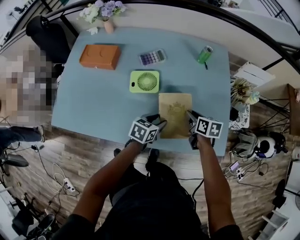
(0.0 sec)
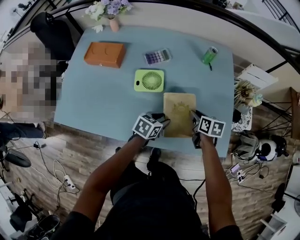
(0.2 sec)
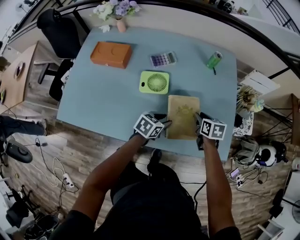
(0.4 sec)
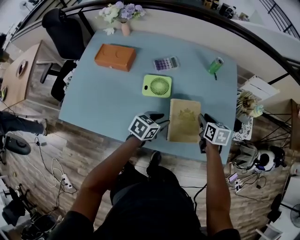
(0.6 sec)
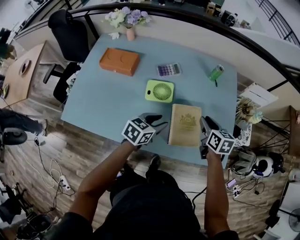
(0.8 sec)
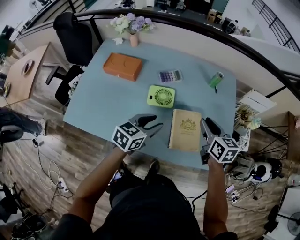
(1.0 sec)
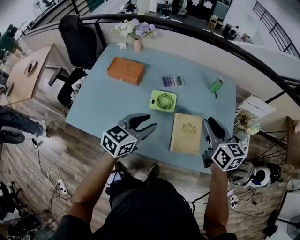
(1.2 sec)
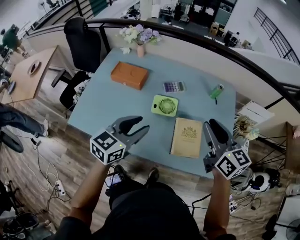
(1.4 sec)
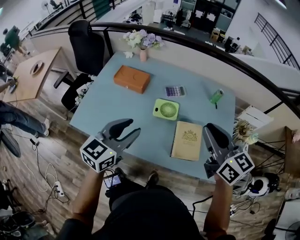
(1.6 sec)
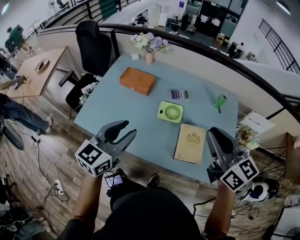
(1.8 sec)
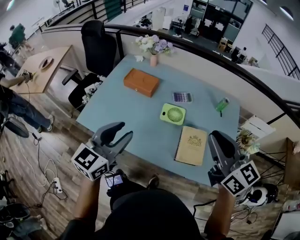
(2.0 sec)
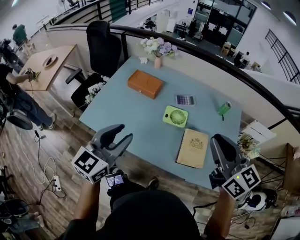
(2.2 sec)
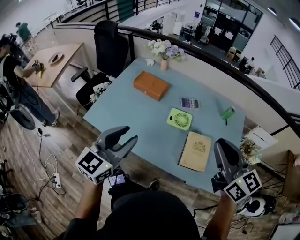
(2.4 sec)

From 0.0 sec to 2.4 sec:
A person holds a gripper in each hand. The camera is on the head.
From 0.0 sec to 1.2 sec: The left gripper moves upward and to the left, approximately 25 cm, and swivels approximately 30 degrees; the right gripper heads upward, covering roughly 25 cm, and changes its angle by roughly 40 degrees.
From 1.2 sec to 2.4 sec: The right gripper heads upward, to the left and backward, covering approximately 20 cm, and turns by roughly 20 degrees. Meanwhile the left gripper shifts some 25 cm to the left, upward and backward, and turns by roughly 30 degrees.

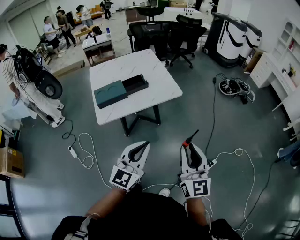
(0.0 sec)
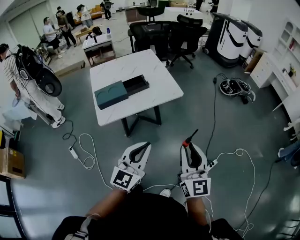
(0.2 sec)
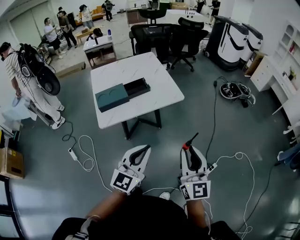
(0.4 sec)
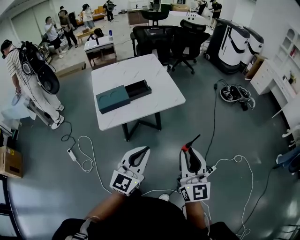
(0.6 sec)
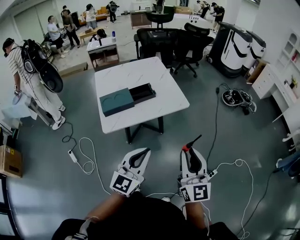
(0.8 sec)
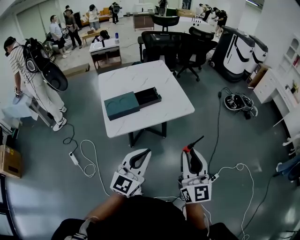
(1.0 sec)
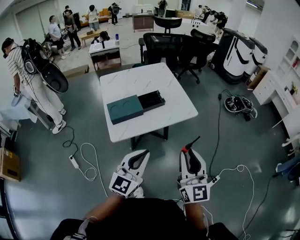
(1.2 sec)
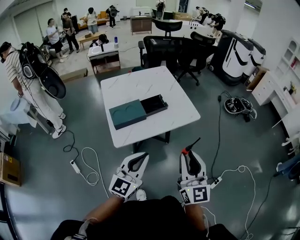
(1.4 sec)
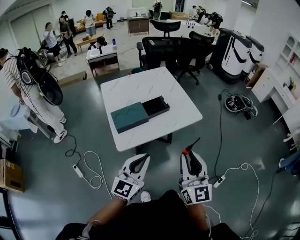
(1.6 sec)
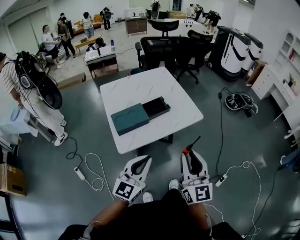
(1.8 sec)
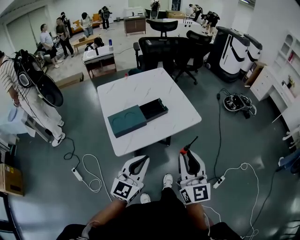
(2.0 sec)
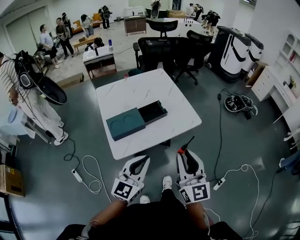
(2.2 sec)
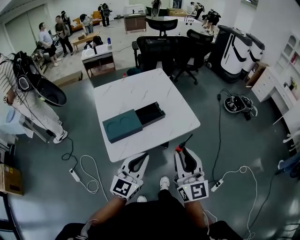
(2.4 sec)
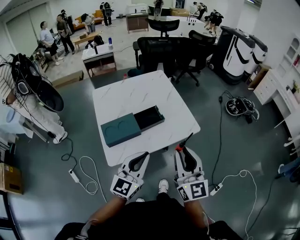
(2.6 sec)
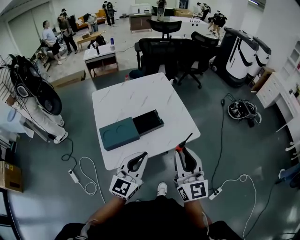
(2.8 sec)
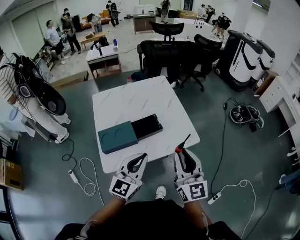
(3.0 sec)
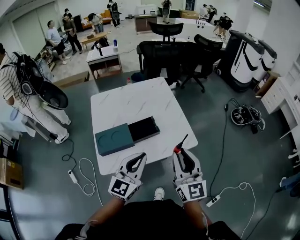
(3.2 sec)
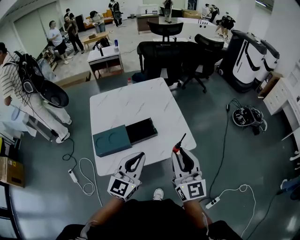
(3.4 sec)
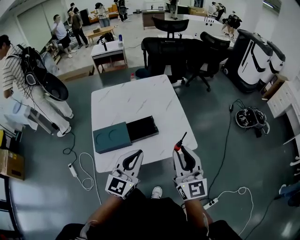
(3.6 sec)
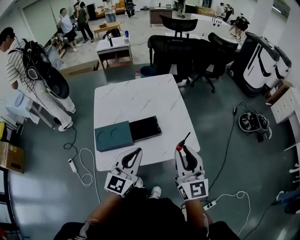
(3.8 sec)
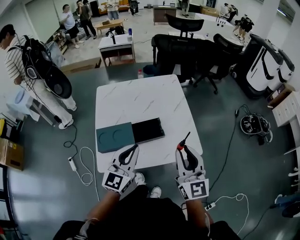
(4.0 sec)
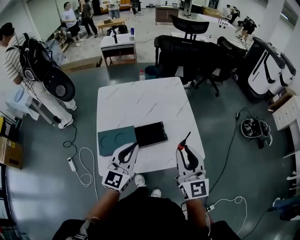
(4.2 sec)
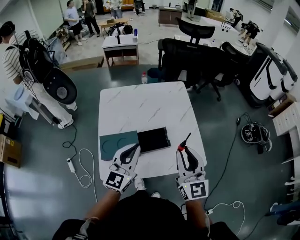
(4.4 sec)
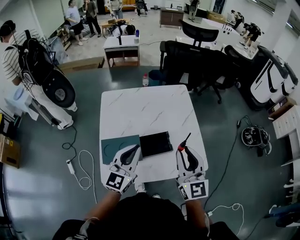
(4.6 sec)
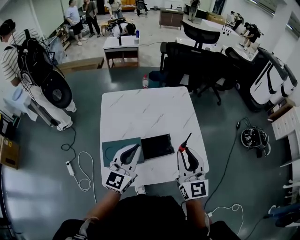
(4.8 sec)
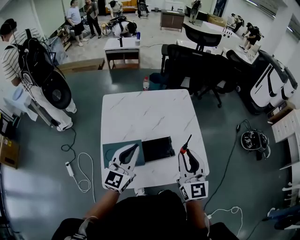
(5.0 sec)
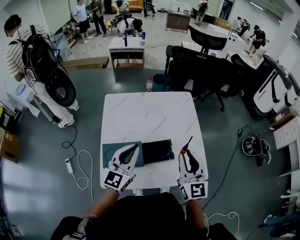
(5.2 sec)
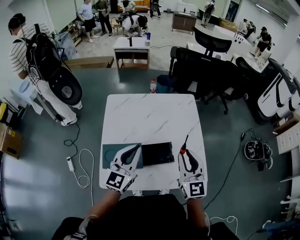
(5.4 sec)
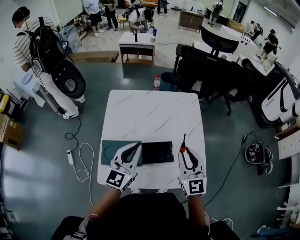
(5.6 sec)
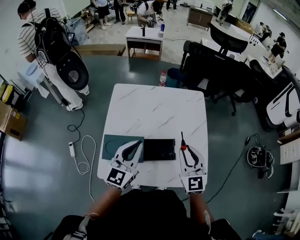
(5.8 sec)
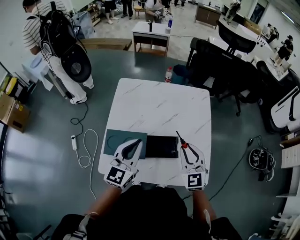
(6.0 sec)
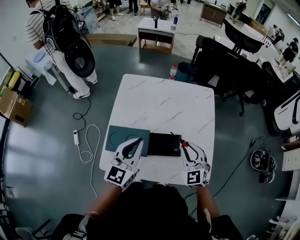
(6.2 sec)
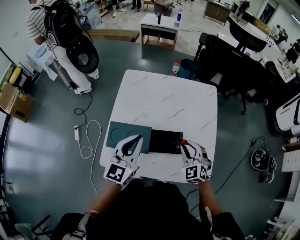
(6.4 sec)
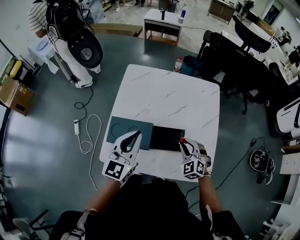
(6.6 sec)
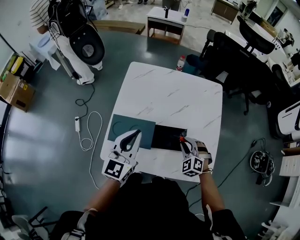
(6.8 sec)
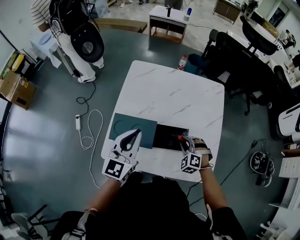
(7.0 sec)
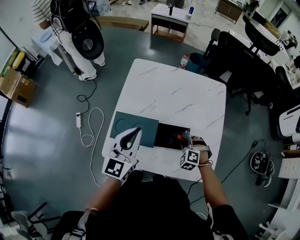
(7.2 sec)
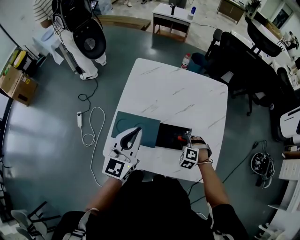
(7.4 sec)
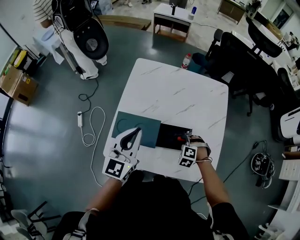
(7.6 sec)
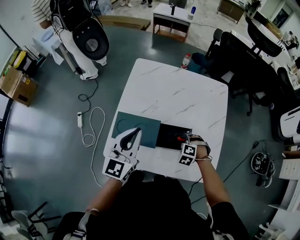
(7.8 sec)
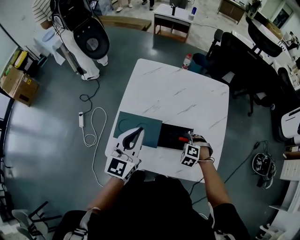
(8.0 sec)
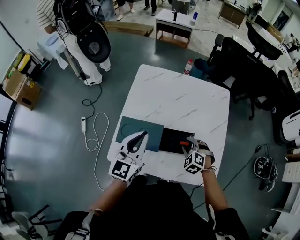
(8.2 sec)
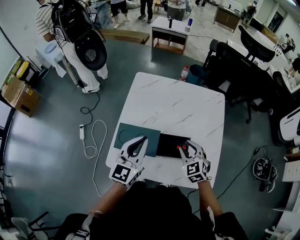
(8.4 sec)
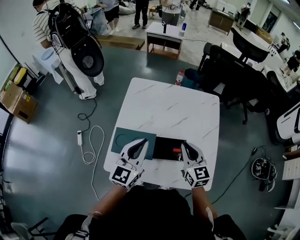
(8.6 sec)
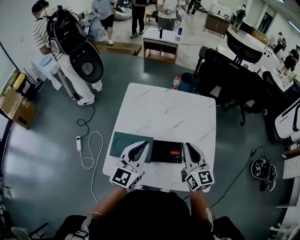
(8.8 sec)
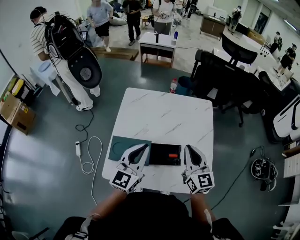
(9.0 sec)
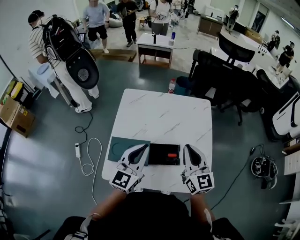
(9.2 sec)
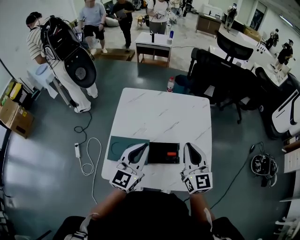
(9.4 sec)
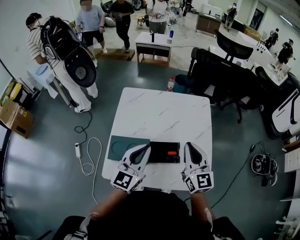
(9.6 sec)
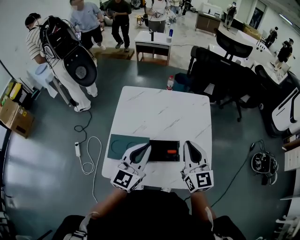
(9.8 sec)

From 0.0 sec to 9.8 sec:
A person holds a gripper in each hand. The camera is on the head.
From 0.0 sec to 1.4 sec: The right gripper travels to the left and forward by about 20 cm. The left gripper travels to the left by approximately 20 cm.
From 1.4 sec to 2.8 sec: The grippers both shift forward by approximately 20 cm.
From 2.8 sec to 4.2 sec: The two grippers go approximately 15 cm forward.
From 4.2 sec to 5.6 sec: The right gripper moves forward and downward, roughly 15 cm. The left gripper travels forward by about 10 cm.
From 5.6 sec to 7.0 sec: The left gripper travels to the left by some 5 cm. Meanwhile the right gripper travels downward by about 25 cm, and angles its fingers downward, by roughly 50 degrees.
From 7.0 sec to 8.4 sec: The right gripper travels upward by some 10 cm, and rotates about 40 degrees.
From 8.4 sec to 9.8 sec: The right gripper travels upward by approximately 15 cm, tips its fingers upward by roughly 40 degrees, and closes its fingers. Meanwhile the left gripper goes about 5 cm to the right.

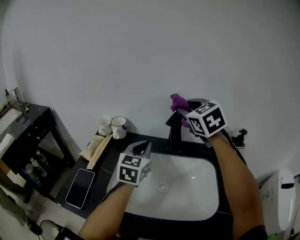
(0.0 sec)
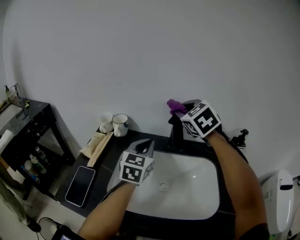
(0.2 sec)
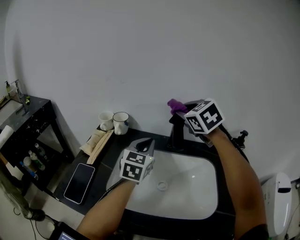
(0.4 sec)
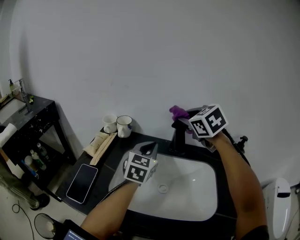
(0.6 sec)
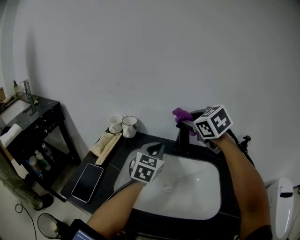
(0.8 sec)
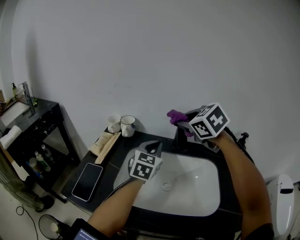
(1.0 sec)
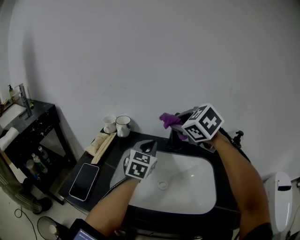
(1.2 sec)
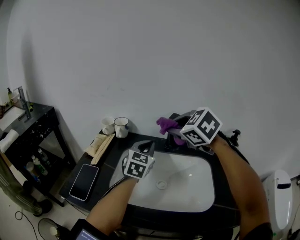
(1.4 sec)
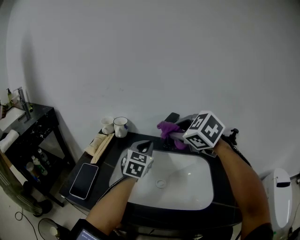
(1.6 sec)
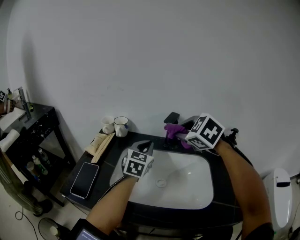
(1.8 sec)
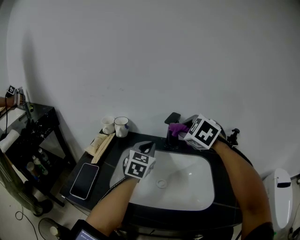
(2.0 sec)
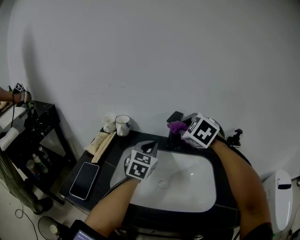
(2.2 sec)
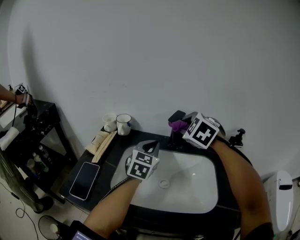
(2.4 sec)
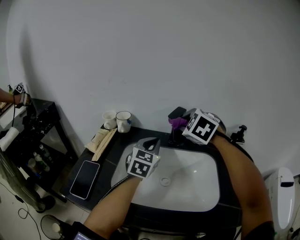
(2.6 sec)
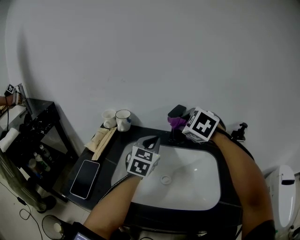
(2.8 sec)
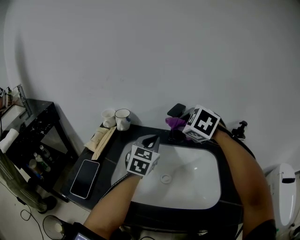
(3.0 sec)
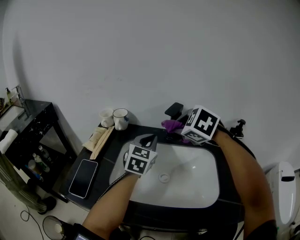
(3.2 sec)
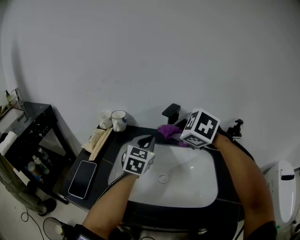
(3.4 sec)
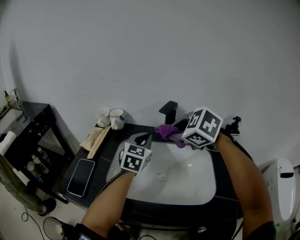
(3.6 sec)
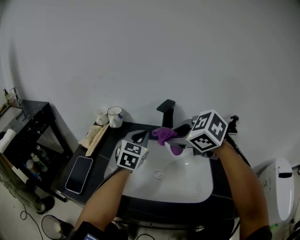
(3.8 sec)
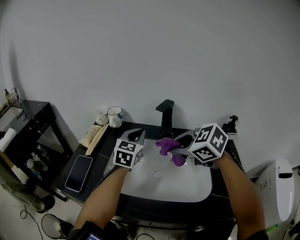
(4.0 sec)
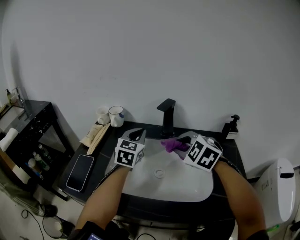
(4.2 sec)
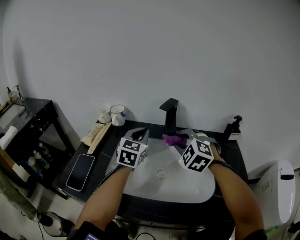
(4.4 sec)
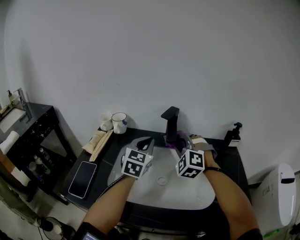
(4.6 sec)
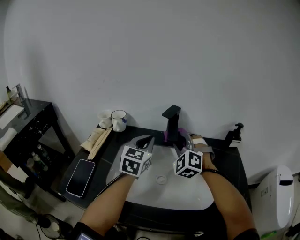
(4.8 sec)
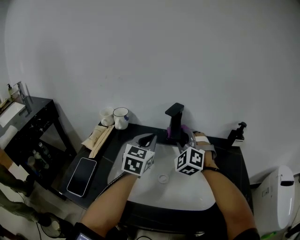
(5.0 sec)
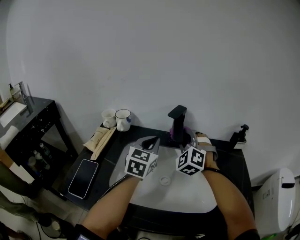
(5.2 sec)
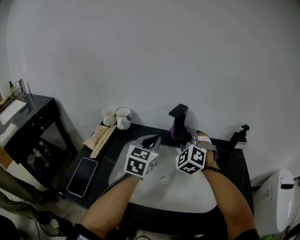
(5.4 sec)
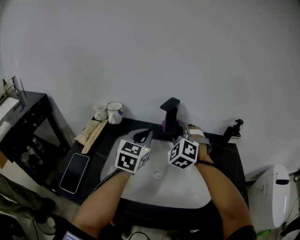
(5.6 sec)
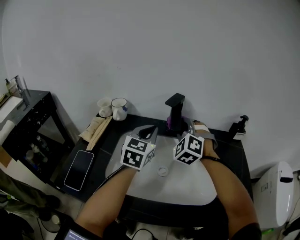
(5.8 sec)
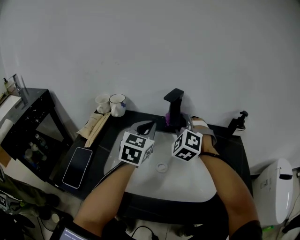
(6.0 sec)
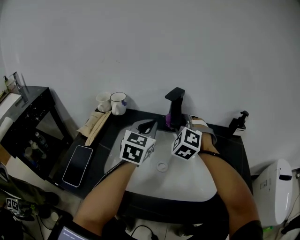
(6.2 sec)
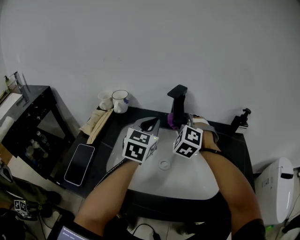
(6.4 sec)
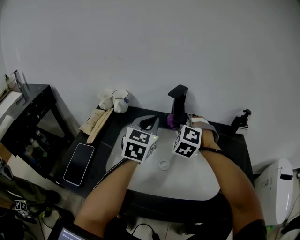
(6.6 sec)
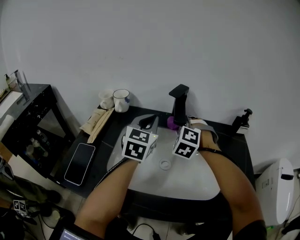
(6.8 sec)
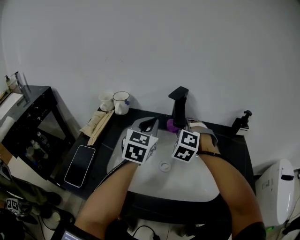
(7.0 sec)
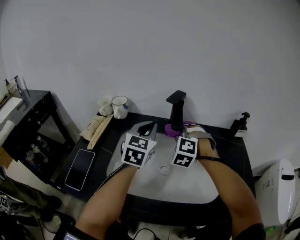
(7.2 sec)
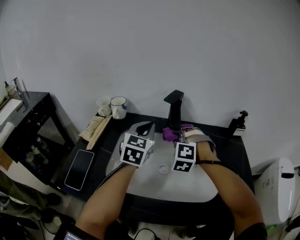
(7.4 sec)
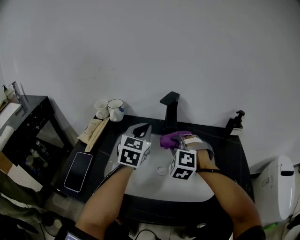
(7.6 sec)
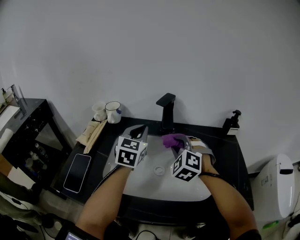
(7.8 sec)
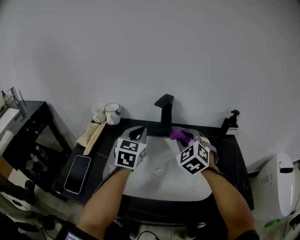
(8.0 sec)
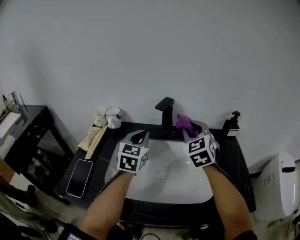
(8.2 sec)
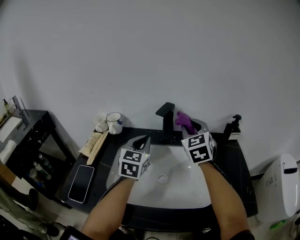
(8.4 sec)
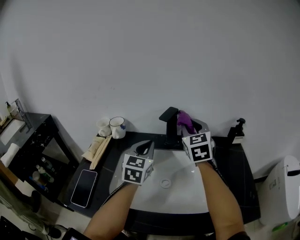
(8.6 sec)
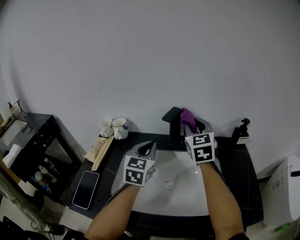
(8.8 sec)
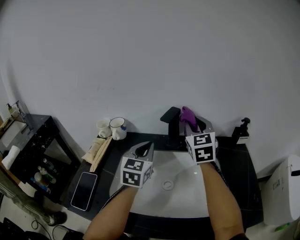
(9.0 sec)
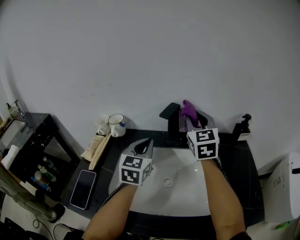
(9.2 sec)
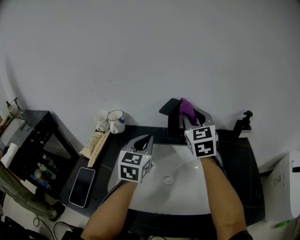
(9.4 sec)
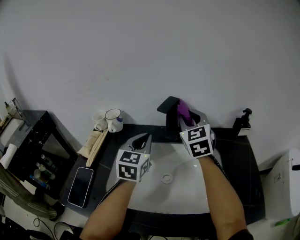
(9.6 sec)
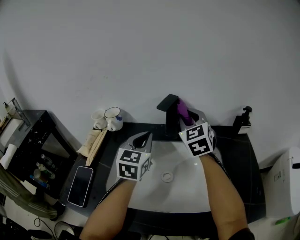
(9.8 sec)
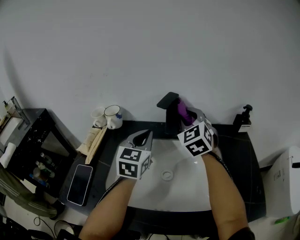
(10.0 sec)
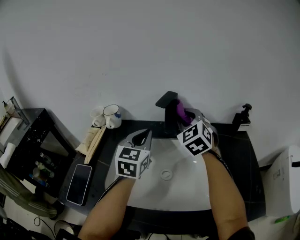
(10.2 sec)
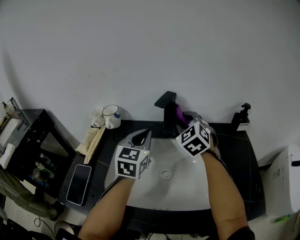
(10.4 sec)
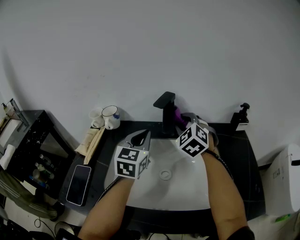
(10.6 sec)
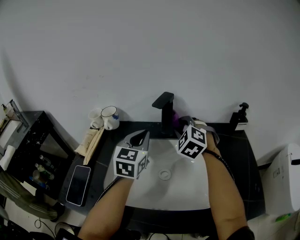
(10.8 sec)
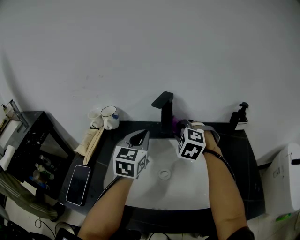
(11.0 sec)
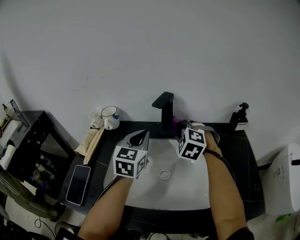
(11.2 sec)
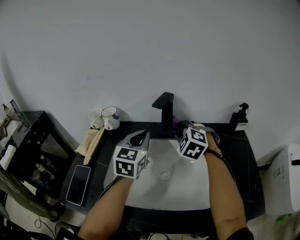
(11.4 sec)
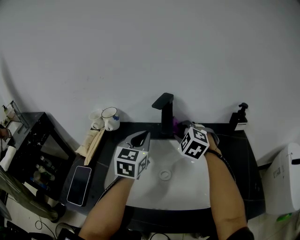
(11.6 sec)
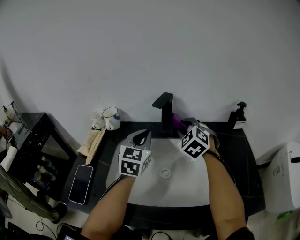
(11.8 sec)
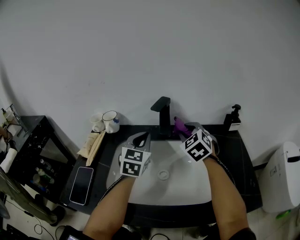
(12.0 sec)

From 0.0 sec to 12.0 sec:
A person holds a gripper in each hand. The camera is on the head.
From 0.0 sec to 1.6 sec: The right gripper goes approximately 10 cm backward, and changes its angle by some 20 degrees.
From 1.6 sec to 3.0 sec: The right gripper is displaced forward and downward by approximately 10 cm.
From 3.0 sec to 4.4 sec: The right gripper travels downward and backward by some 10 cm.
From 4.4 sec to 6.0 sec: The right gripper heads forward, covering about 10 cm.
From 6.0 sec to 7.6 sec: The right gripper is displaced backward and downward by approximately 10 cm.
From 7.6 sec to 9.0 sec: The right gripper travels upward and forward by some 20 cm, and rotates around the line of its fingers by about 60 degrees, clockwise from behind.
From 9.0 sec to 10.4 sec: The right gripper is displaced downward by about 10 cm, and turns by approximately 30 degrees.
From 10.4 sec to 12.0 sec: The right gripper moves about 5 cm.
